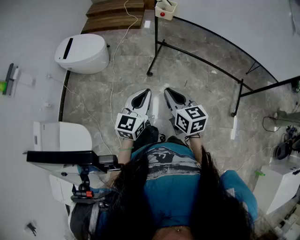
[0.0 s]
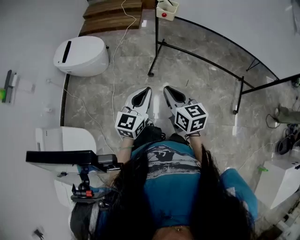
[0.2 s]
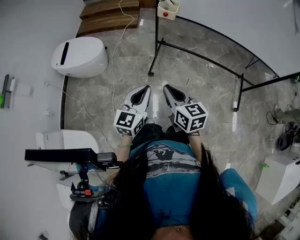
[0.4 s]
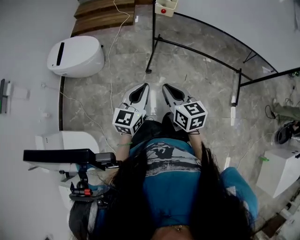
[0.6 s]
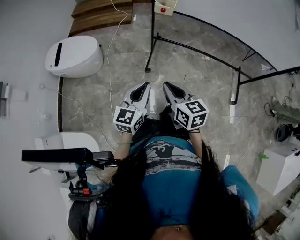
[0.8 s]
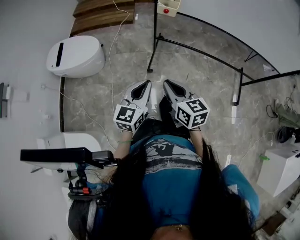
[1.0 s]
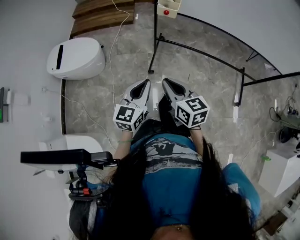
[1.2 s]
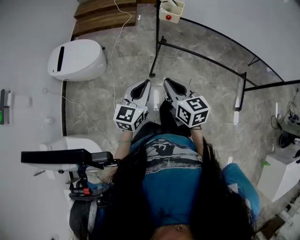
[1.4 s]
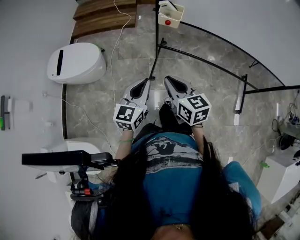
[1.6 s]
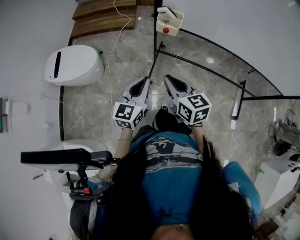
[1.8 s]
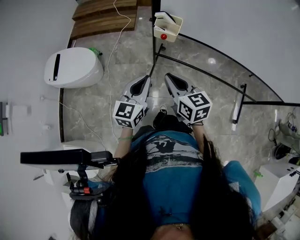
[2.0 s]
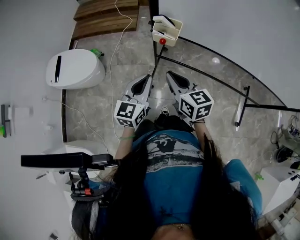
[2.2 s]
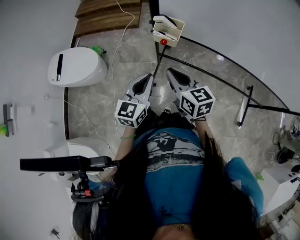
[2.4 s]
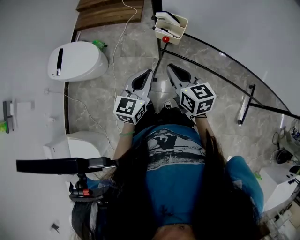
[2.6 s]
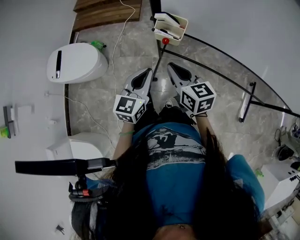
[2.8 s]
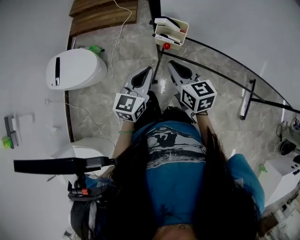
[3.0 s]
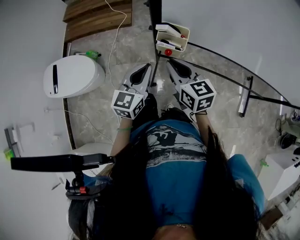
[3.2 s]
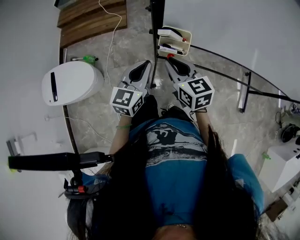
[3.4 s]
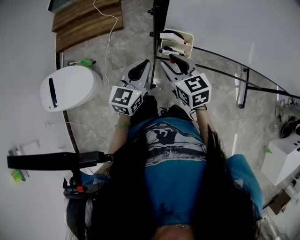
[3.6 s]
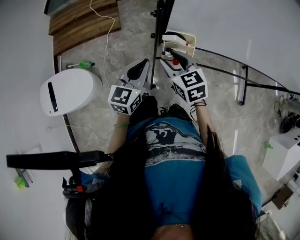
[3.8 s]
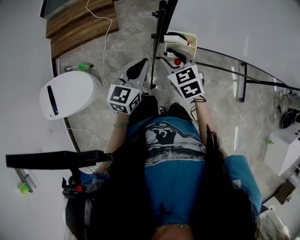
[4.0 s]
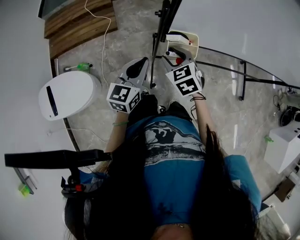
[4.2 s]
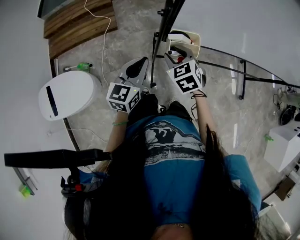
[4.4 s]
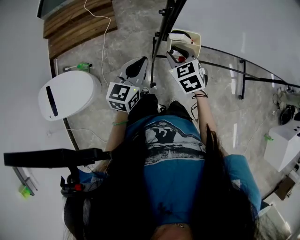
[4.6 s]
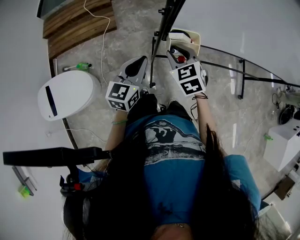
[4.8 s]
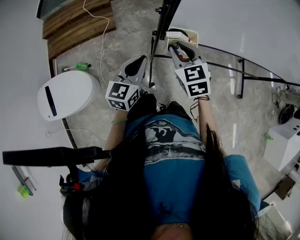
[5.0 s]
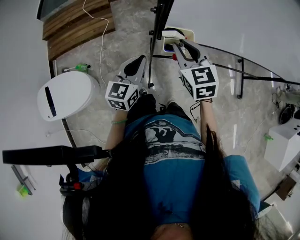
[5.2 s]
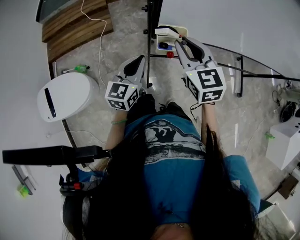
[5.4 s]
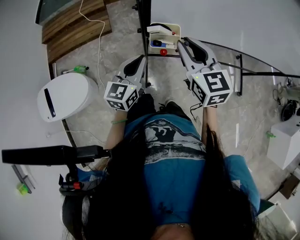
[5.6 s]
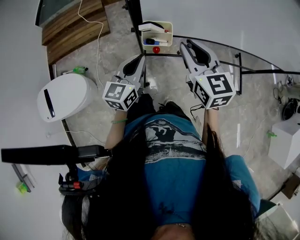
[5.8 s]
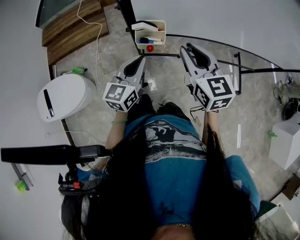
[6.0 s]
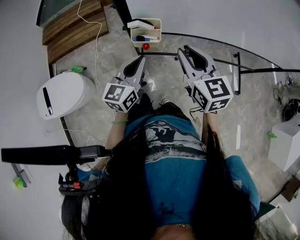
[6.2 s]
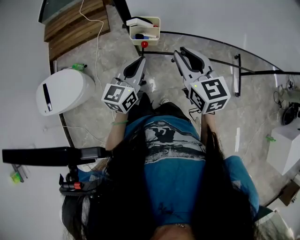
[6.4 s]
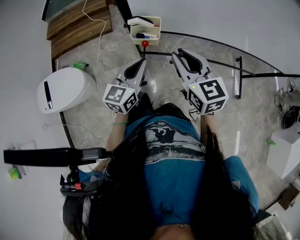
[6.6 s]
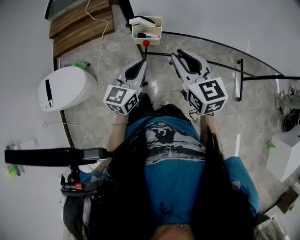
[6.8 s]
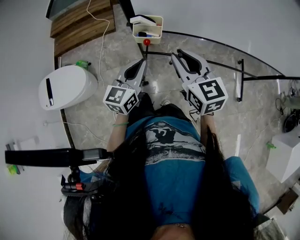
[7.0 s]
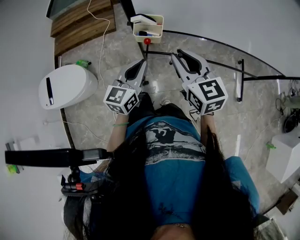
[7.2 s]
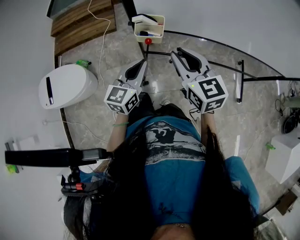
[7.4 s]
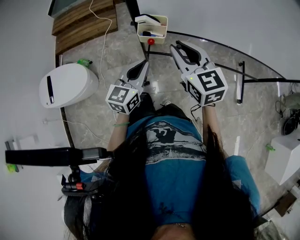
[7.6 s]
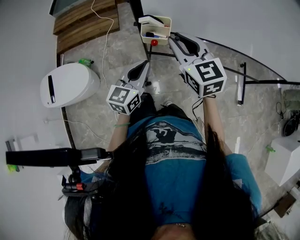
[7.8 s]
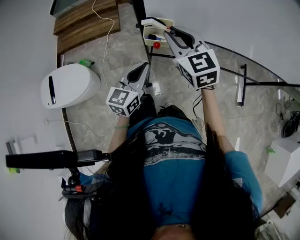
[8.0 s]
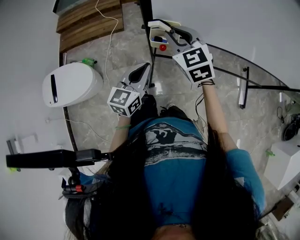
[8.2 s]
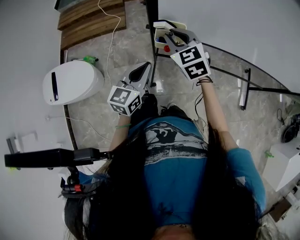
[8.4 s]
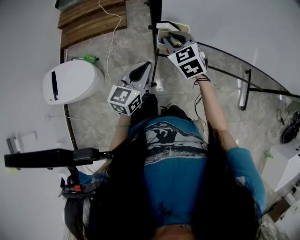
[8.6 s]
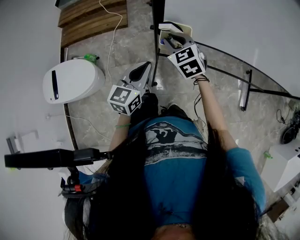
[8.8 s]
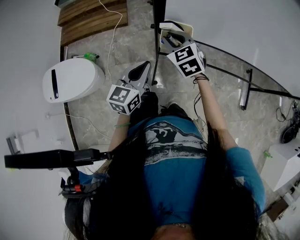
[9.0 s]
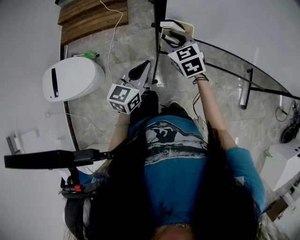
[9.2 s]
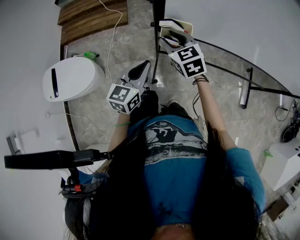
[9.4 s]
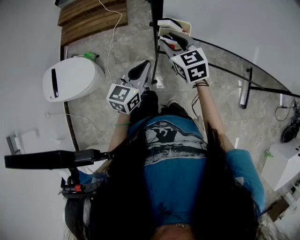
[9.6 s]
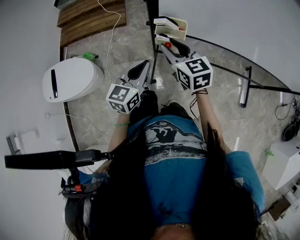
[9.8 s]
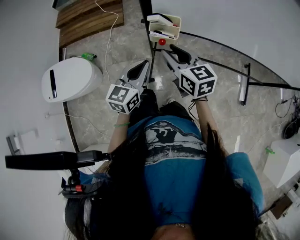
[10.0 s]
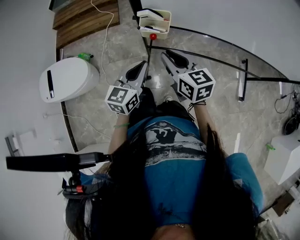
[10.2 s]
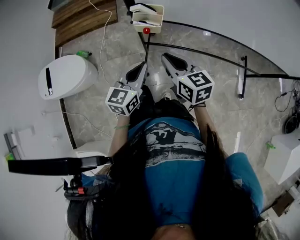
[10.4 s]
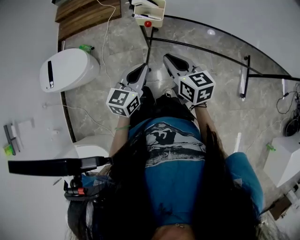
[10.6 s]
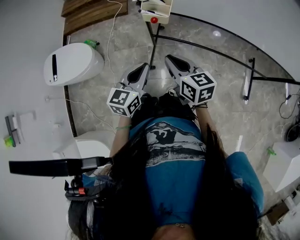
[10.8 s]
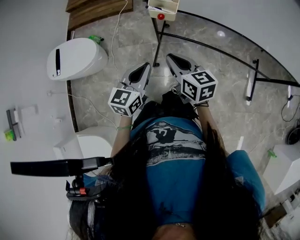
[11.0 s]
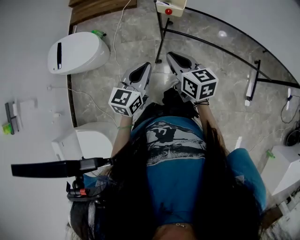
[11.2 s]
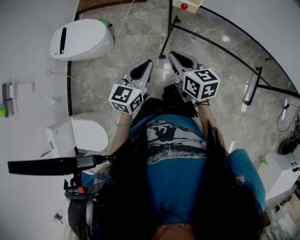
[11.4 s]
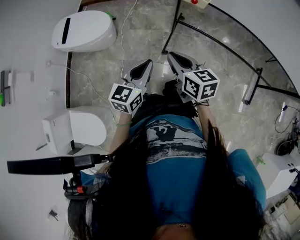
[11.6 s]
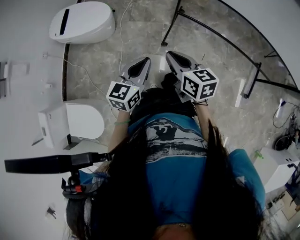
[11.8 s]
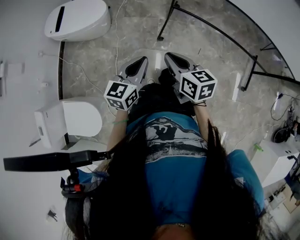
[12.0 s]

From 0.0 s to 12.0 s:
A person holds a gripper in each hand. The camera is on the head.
From 0.0 s to 1.6 s: Both grippers travel together forward, roughly 25 cm.
From 1.6 s to 3.0 s: The grippers both shift forward by some 25 cm.
From 3.0 s to 4.4 s: The right gripper heads forward, to the left and downward, covering roughly 15 cm, turns by some 40 degrees, and opens its fingers; the left gripper moves forward and to the left, some 15 cm.
From 4.4 s to 6.0 s: The right gripper is displaced to the right, upward and backward by about 25 cm, and turns by about 30 degrees. The left gripper travels to the right by some 10 cm.
From 6.0 s to 7.6 s: The grippers stay close to where they were, moving slightly.
From 7.6 s to 9.0 s: The right gripper moves downward, forward and to the left, about 20 cm, and rotates about 20 degrees. The left gripper heads to the left, covering roughly 5 cm.
From 9.0 s to 10.4 s: The left gripper is displaced backward and to the right by approximately 15 cm; the right gripper goes about 20 cm backward and to the right, and changes its angle by approximately 40 degrees.
From 10.4 s to 12.0 s: The grippers both shift backward and to the left by approximately 35 cm.

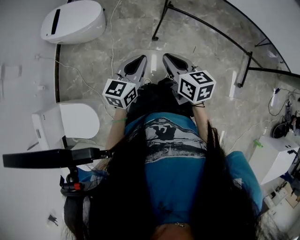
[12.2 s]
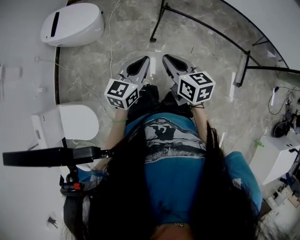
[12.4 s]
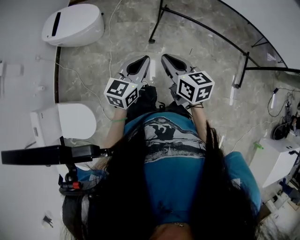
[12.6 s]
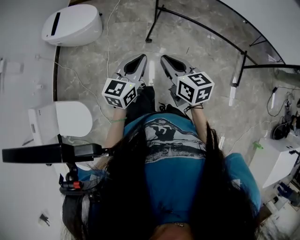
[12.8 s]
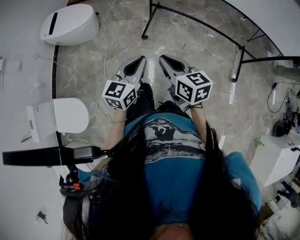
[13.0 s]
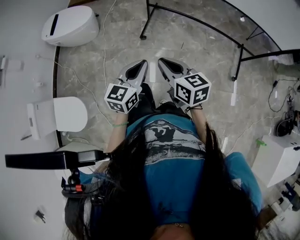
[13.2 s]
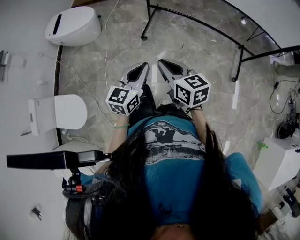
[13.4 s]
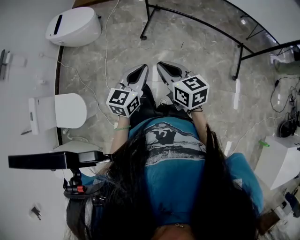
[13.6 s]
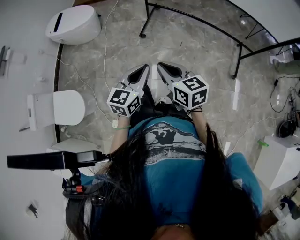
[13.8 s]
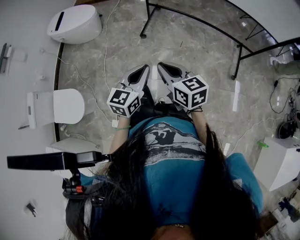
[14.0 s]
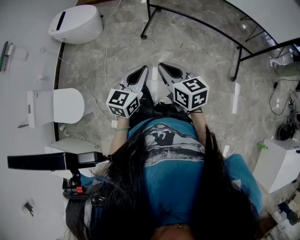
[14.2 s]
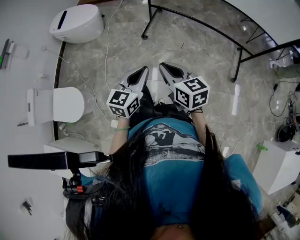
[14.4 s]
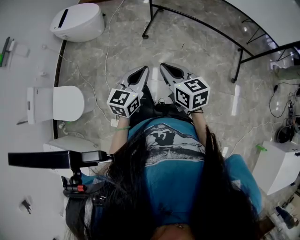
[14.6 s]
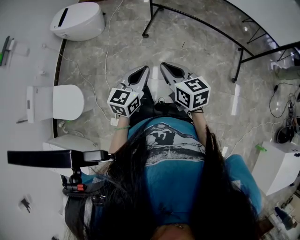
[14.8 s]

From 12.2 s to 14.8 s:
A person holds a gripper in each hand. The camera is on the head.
From 12.2 s to 13.4 s: The grippers both shift backward and to the right by about 30 cm.
From 13.4 s to 14.8 s: Both grippers move backward, roughly 10 cm.

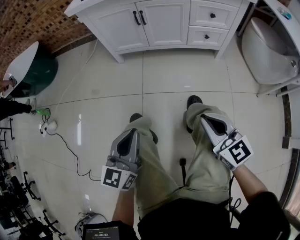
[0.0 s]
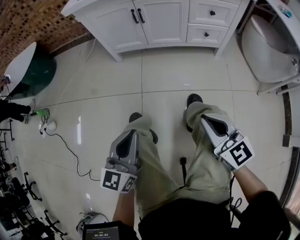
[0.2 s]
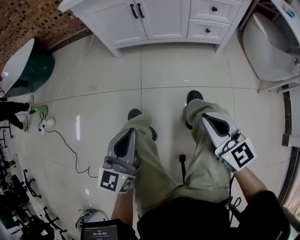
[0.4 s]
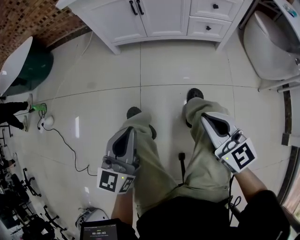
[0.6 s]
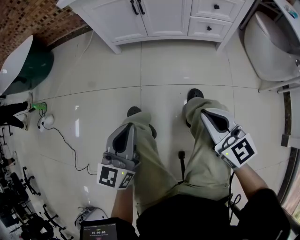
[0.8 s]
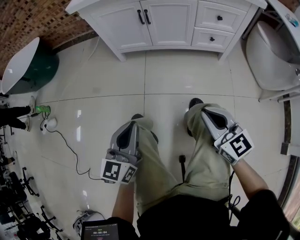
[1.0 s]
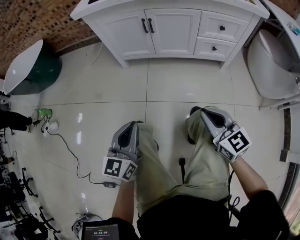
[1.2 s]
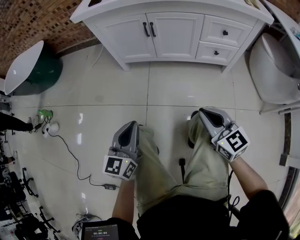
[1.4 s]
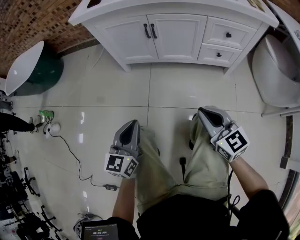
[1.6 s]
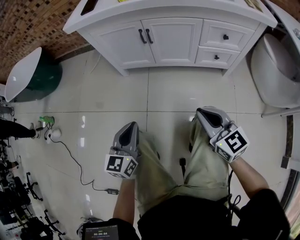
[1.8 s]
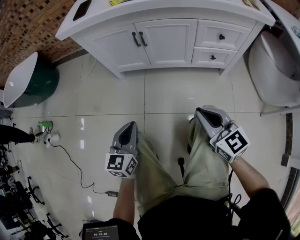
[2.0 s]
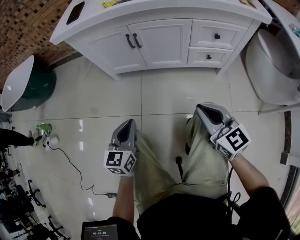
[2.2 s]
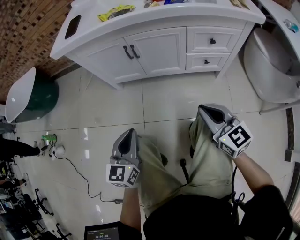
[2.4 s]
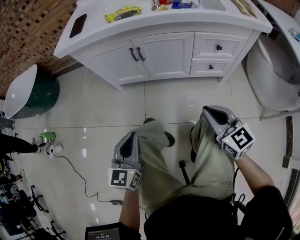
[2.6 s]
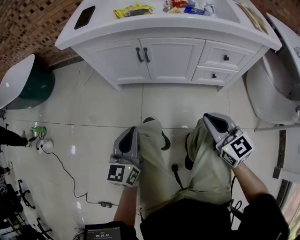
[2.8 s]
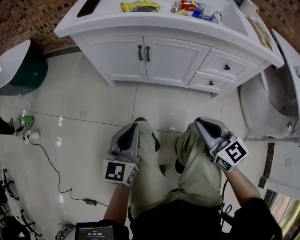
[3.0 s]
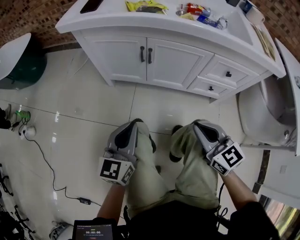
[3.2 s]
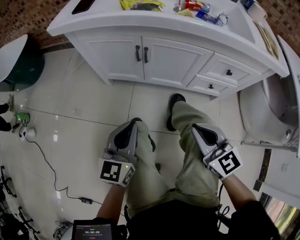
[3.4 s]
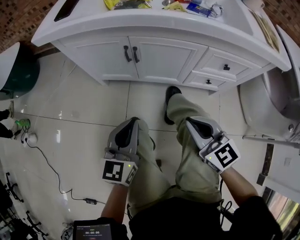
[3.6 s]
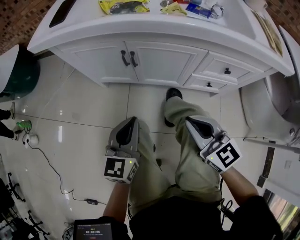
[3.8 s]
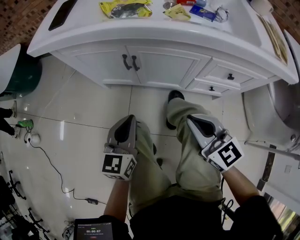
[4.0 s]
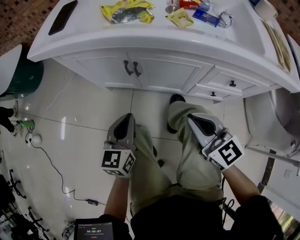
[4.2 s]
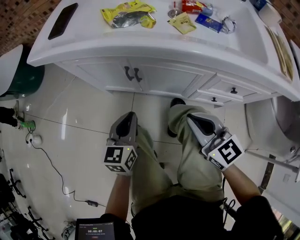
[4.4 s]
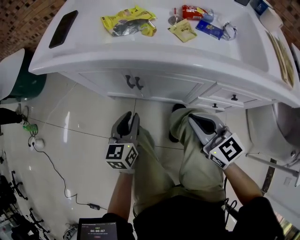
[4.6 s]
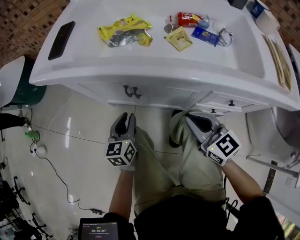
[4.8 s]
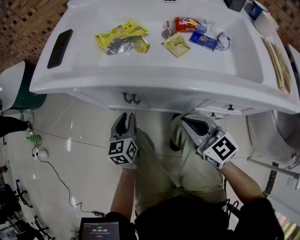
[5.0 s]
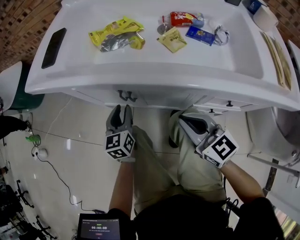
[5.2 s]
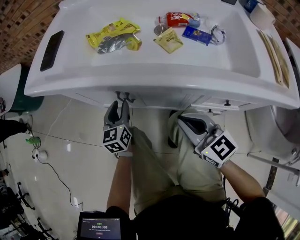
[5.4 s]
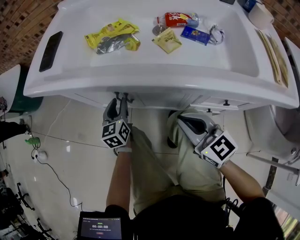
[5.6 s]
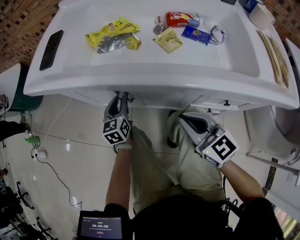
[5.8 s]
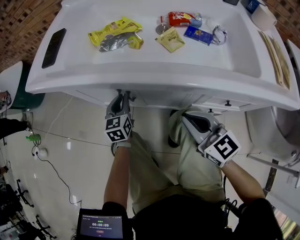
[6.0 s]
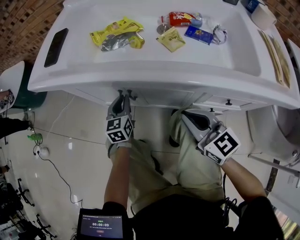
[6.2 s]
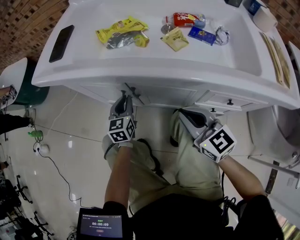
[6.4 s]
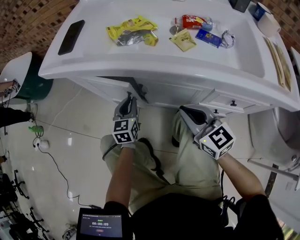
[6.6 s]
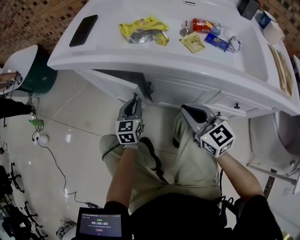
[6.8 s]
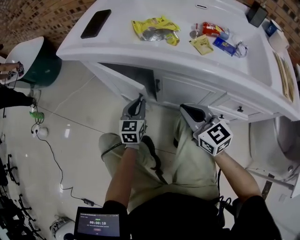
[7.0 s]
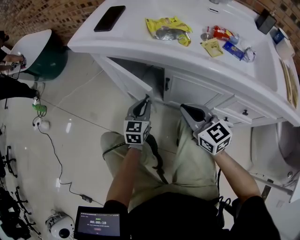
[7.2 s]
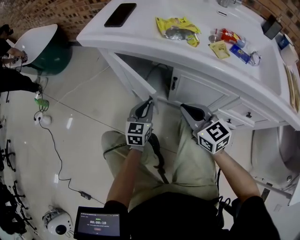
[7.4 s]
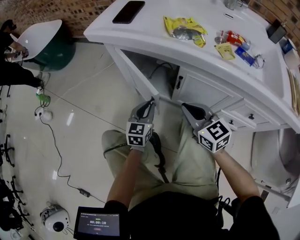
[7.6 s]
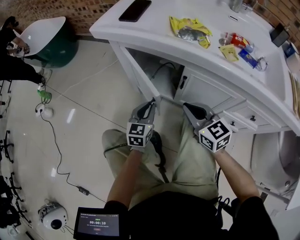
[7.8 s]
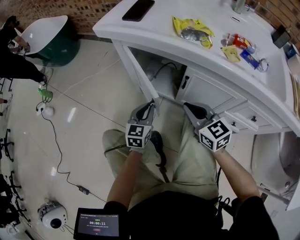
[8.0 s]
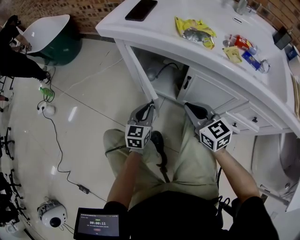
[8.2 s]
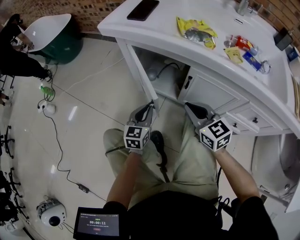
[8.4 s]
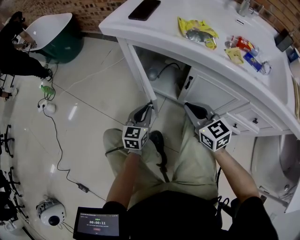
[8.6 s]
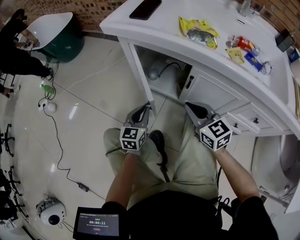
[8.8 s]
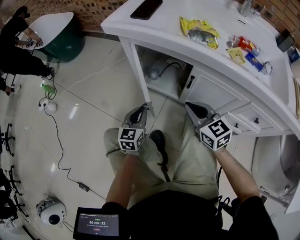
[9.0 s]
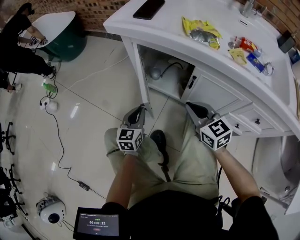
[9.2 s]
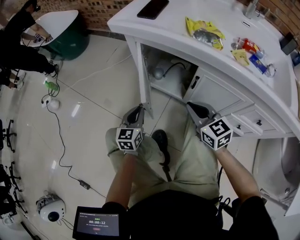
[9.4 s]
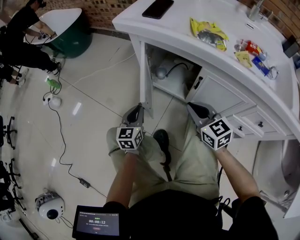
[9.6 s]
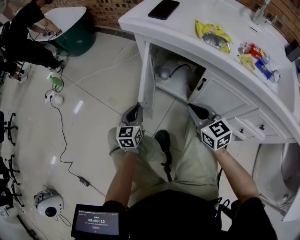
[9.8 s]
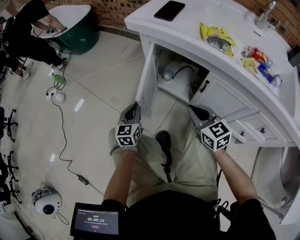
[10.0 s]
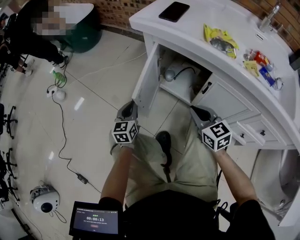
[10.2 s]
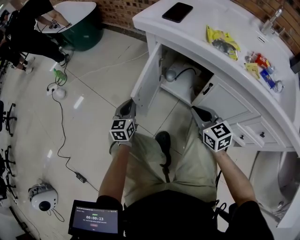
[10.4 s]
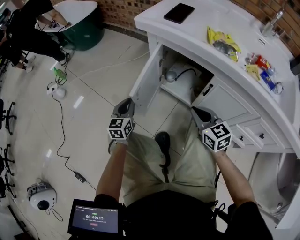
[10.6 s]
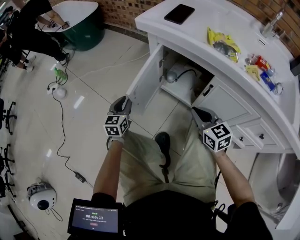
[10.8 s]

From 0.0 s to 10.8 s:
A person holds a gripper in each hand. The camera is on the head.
From 0.0 s to 1.6 s: The grippers both shift forward by some 15 cm.
From 1.6 s to 3.0 s: The left gripper is displaced forward and to the right by some 15 cm, while the right gripper travels forward by roughly 10 cm.
From 3.0 s to 4.6 s: The right gripper goes roughly 20 cm forward, while the left gripper shifts about 20 cm forward and downward.
From 4.6 s to 6.2 s: The left gripper is displaced forward by about 15 cm.
From 6.2 s to 7.8 s: The right gripper is displaced to the left by about 15 cm. Meanwhile the left gripper heads to the left and backward, covering approximately 15 cm.
From 7.8 s to 9.2 s: The left gripper goes about 10 cm to the left.
From 9.2 s to 10.8 s: The left gripper heads to the left and forward, covering approximately 15 cm.
